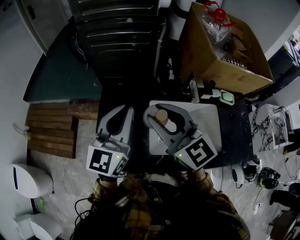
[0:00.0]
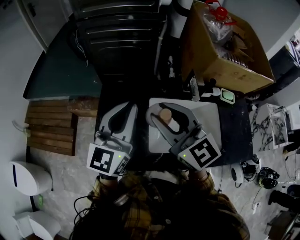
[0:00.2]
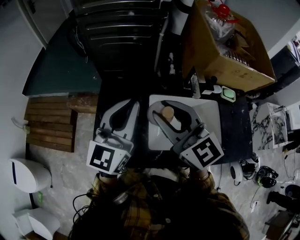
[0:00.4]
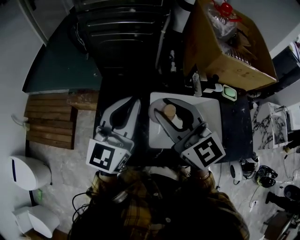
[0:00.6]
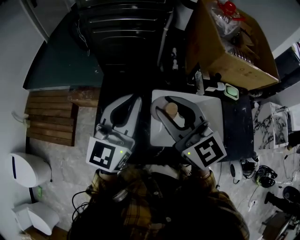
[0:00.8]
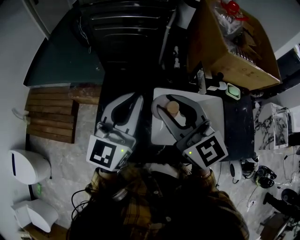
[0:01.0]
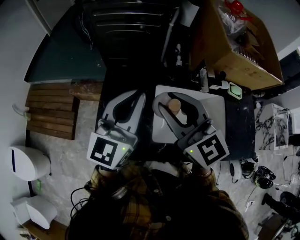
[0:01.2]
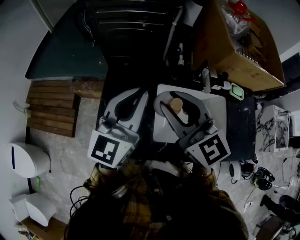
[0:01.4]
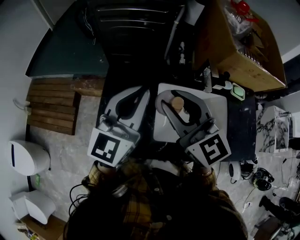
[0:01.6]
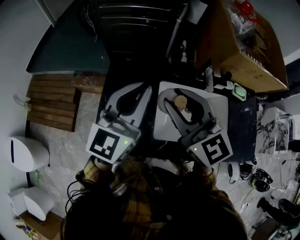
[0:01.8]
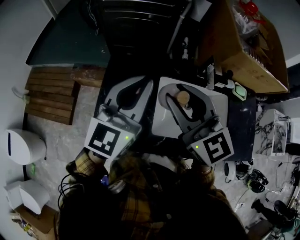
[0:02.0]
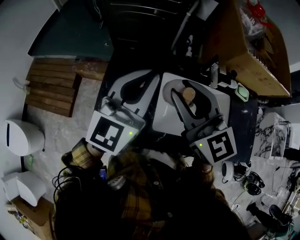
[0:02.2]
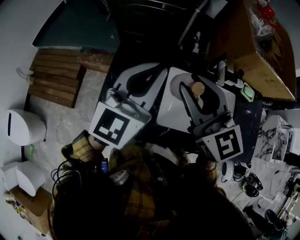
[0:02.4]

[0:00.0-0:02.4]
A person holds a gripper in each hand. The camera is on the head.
0:00.0 to 0:01.2: The grippers stay close to where they were, moving slightly.
0:01.2 to 0:02.4: The two grippers keep their place.

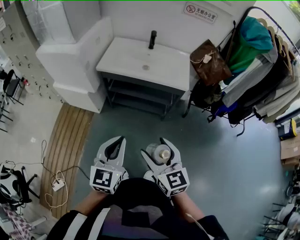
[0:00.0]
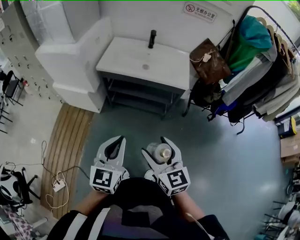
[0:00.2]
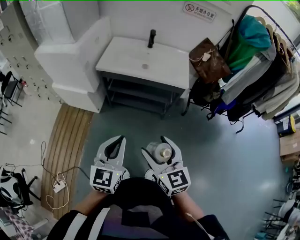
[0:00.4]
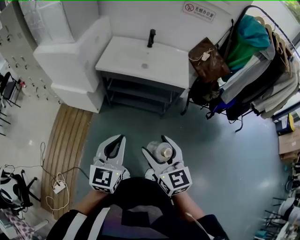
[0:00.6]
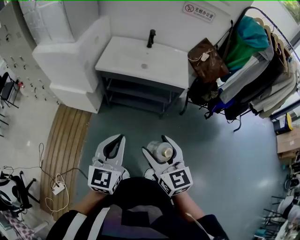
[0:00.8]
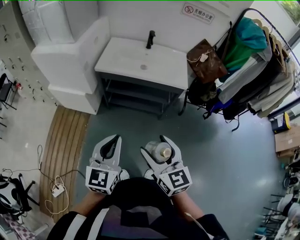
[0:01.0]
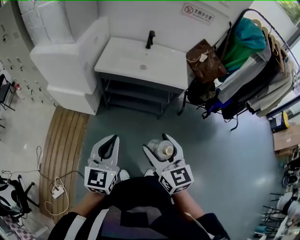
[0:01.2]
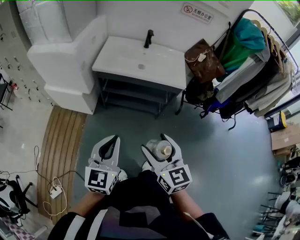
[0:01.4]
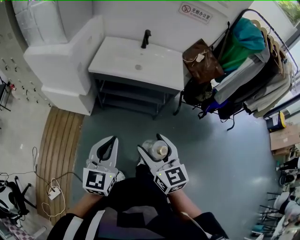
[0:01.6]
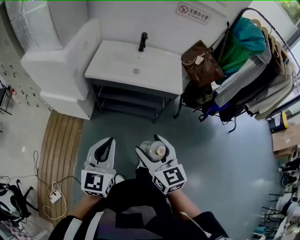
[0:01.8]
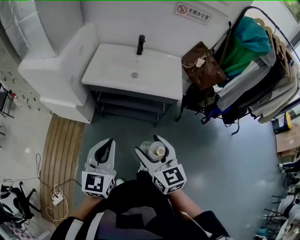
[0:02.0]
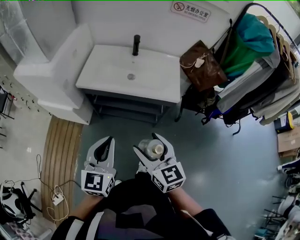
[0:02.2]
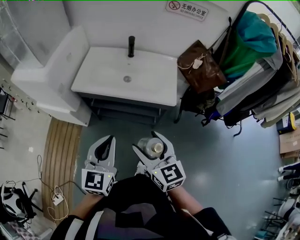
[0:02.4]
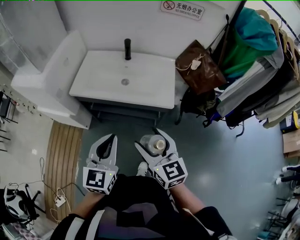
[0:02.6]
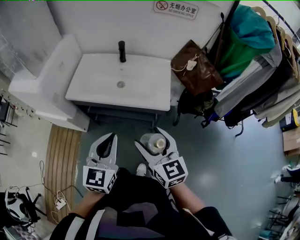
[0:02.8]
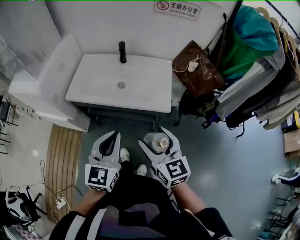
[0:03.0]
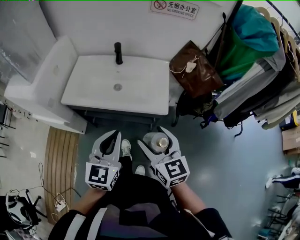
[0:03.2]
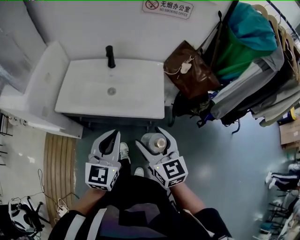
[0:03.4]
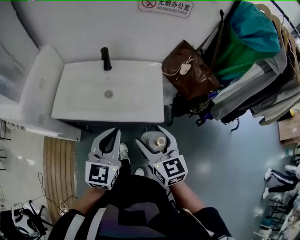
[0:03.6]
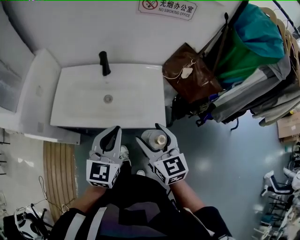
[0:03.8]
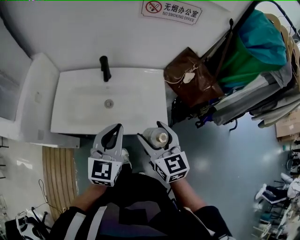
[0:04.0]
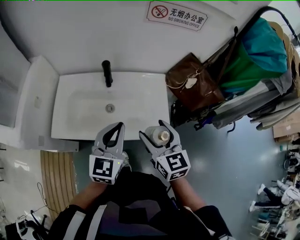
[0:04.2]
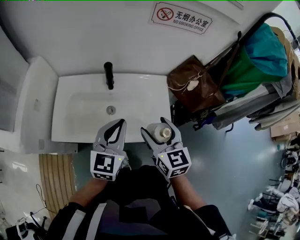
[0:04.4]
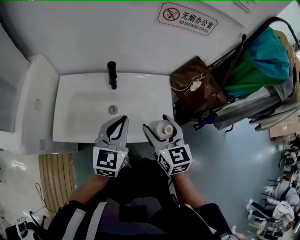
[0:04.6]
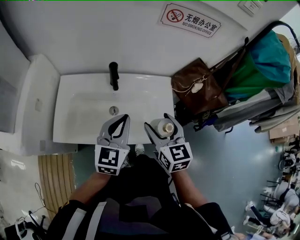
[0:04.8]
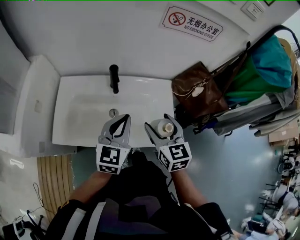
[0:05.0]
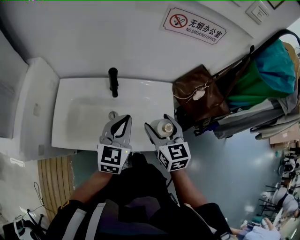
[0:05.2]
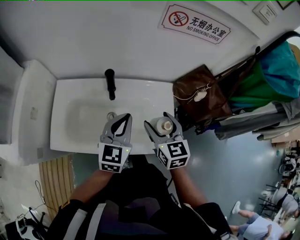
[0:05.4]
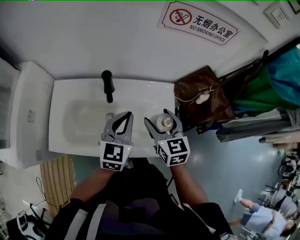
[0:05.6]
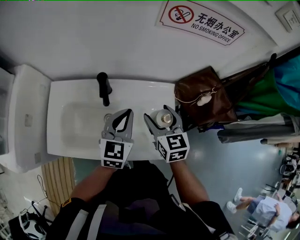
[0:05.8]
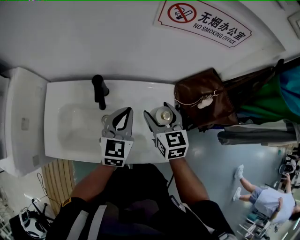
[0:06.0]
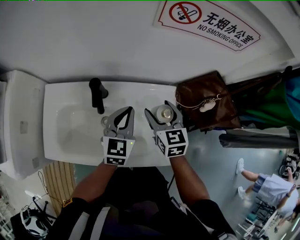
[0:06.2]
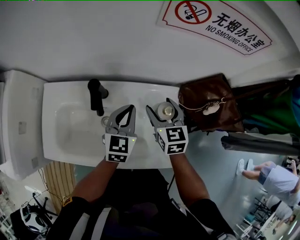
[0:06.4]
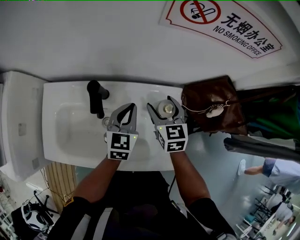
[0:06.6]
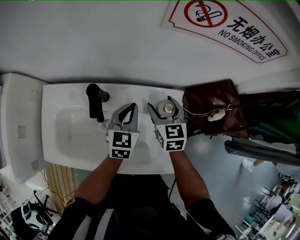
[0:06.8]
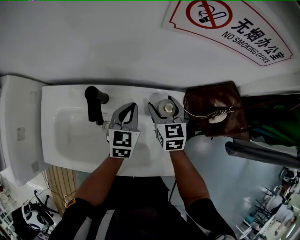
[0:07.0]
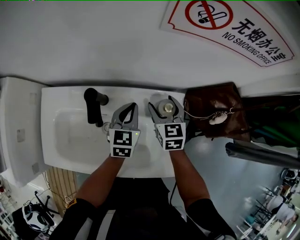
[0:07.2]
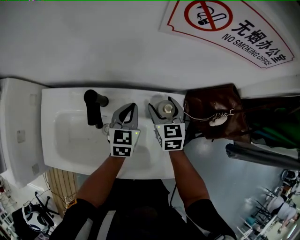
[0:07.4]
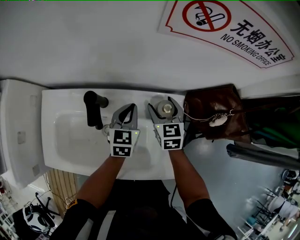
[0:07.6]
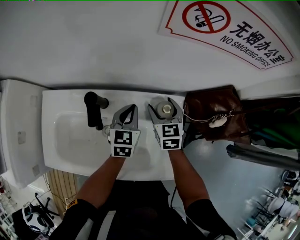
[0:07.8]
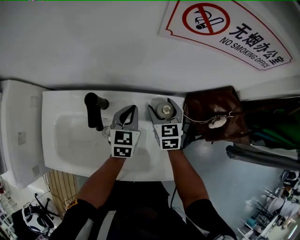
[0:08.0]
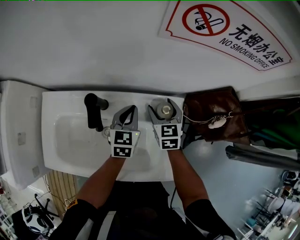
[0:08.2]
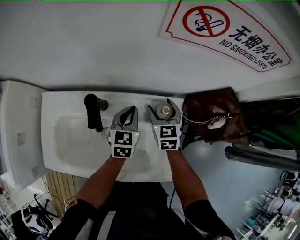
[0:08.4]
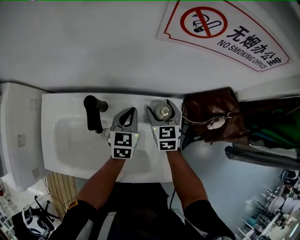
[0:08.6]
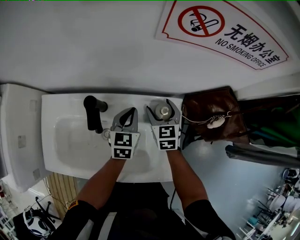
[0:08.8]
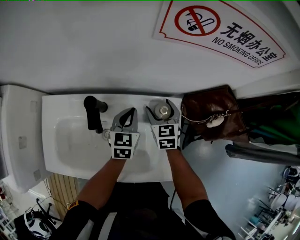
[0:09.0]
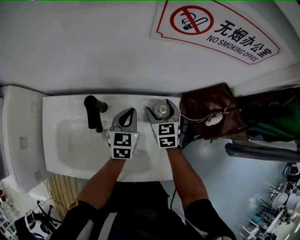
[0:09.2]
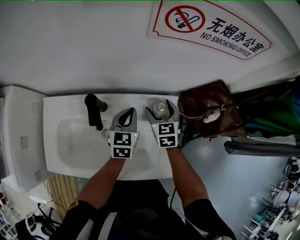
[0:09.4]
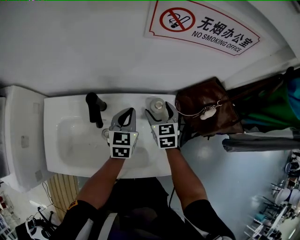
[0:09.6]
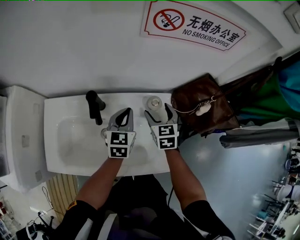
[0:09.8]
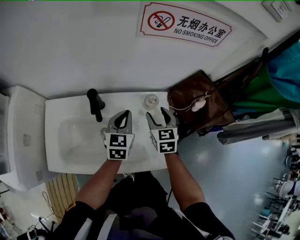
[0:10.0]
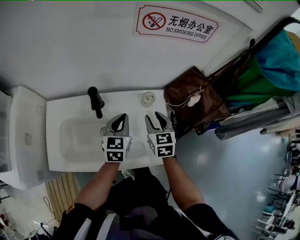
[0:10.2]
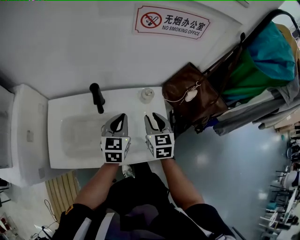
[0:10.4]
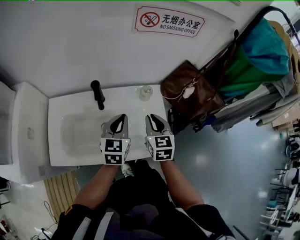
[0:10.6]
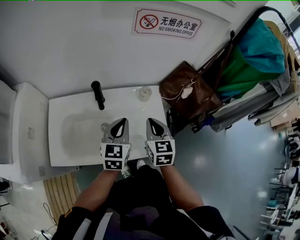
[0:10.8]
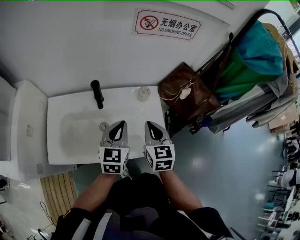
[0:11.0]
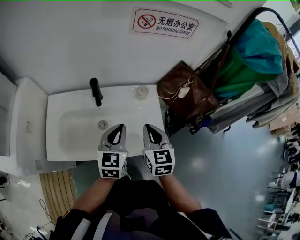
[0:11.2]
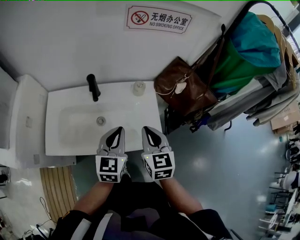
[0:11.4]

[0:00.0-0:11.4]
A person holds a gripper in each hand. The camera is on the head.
0:00.0 to 0:01.4: The left gripper is displaced to the left by some 5 cm.
0:01.4 to 0:02.8: The two grippers go roughly 30 cm forward and to the right.
0:02.8 to 0:04.2: The two grippers go approximately 25 cm forward.
0:04.2 to 0:05.6: Both grippers move forward, some 15 cm.
0:05.6 to 0:07.2: The right gripper shifts roughly 20 cm forward and downward, while the left gripper moves downward and forward, about 20 cm.
0:07.2 to 0:08.6: The grippers move only a little.
0:08.6 to 0:10.0: The left gripper heads upward and backward, covering some 10 cm, while the right gripper shifts roughly 10 cm backward and upward.
0:10.0 to 0:11.4: Both grippers travel together backward and upward, some 25 cm. The right gripper closes up.

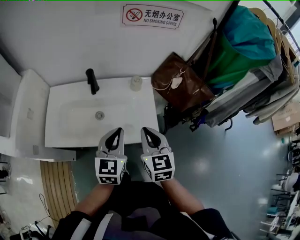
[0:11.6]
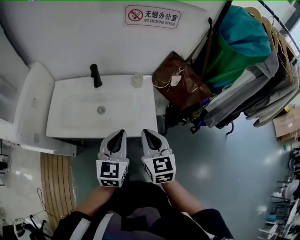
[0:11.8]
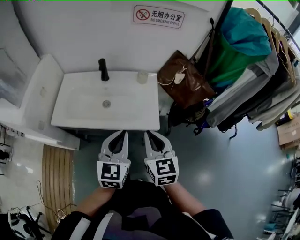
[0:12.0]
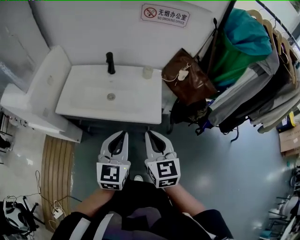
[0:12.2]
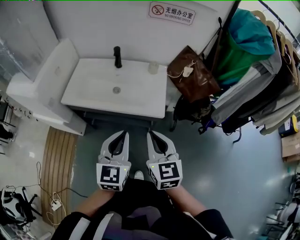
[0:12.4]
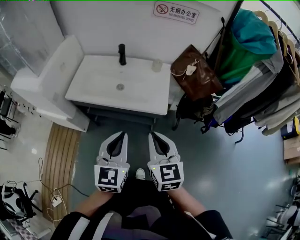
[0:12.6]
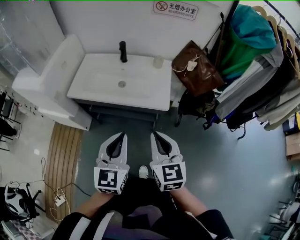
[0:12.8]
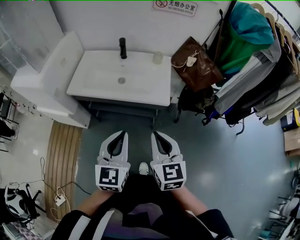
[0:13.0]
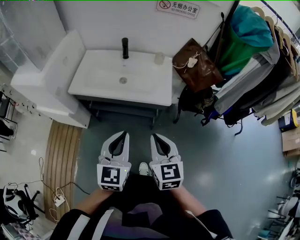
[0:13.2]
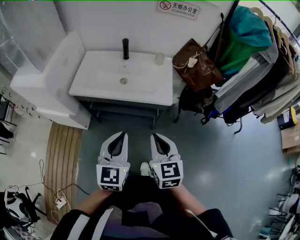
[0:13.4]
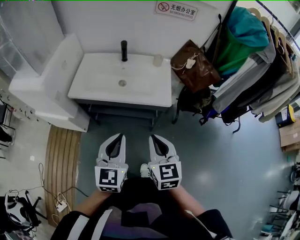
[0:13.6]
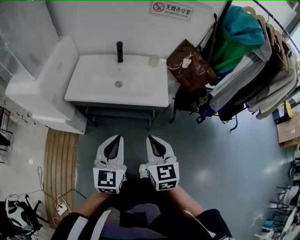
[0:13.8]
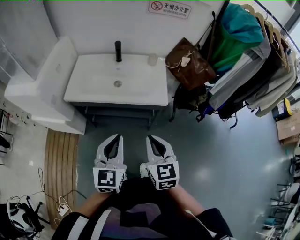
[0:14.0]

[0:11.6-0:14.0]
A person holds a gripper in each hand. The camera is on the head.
0:11.6 to 0:12.8: Both grippers move backward, roughly 25 cm.
0:12.8 to 0:14.0: Both grippers move to the left, some 5 cm.

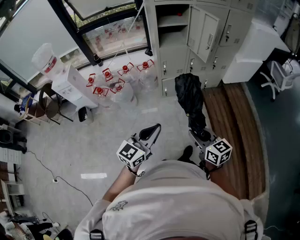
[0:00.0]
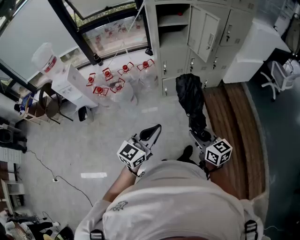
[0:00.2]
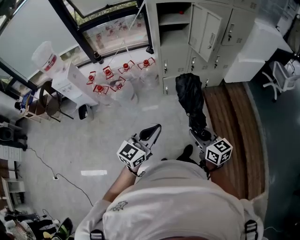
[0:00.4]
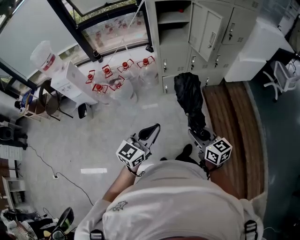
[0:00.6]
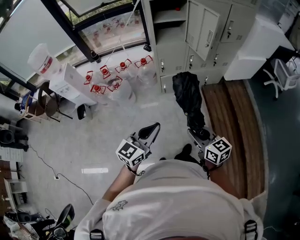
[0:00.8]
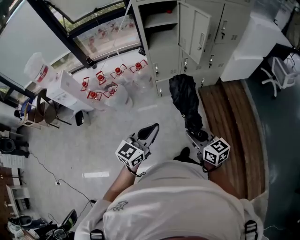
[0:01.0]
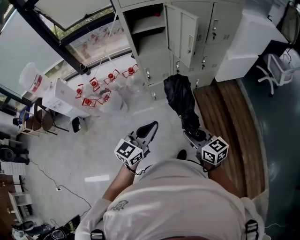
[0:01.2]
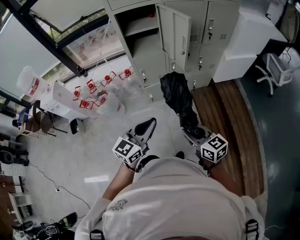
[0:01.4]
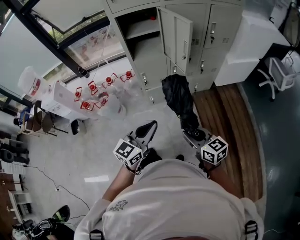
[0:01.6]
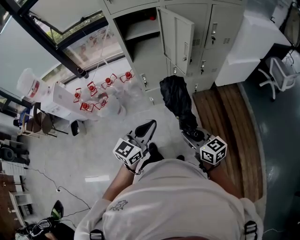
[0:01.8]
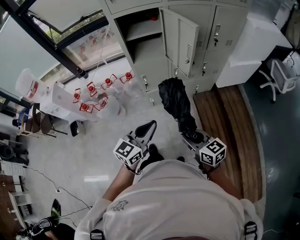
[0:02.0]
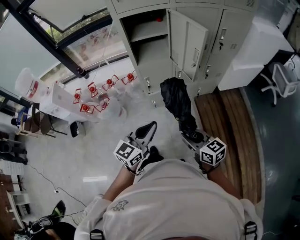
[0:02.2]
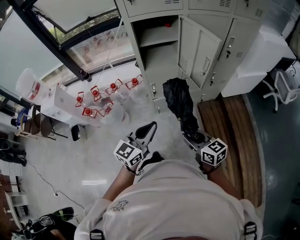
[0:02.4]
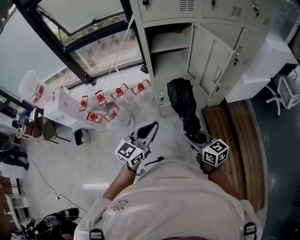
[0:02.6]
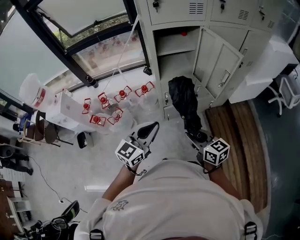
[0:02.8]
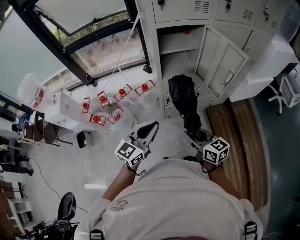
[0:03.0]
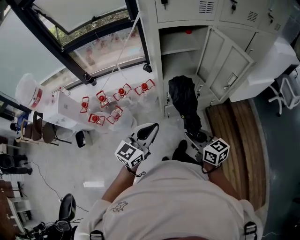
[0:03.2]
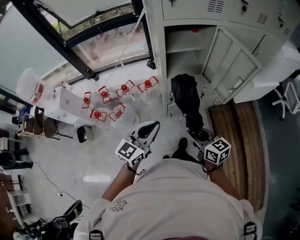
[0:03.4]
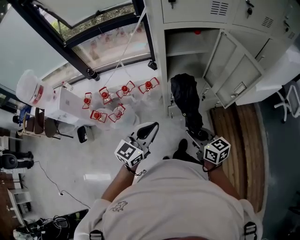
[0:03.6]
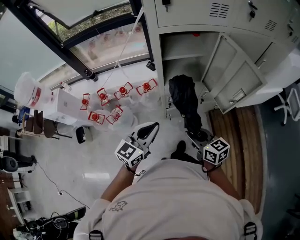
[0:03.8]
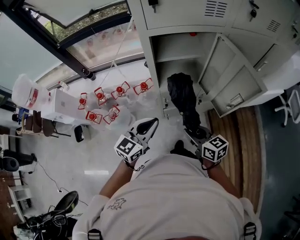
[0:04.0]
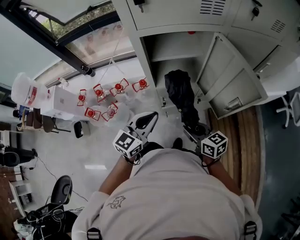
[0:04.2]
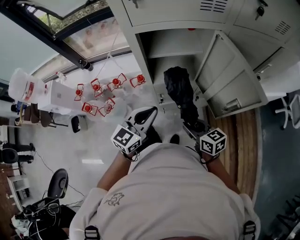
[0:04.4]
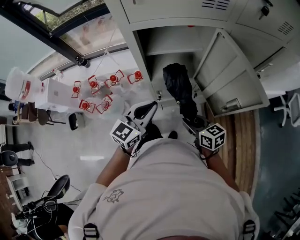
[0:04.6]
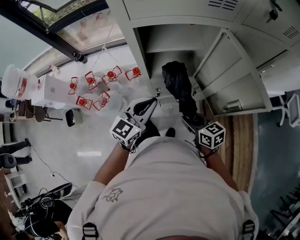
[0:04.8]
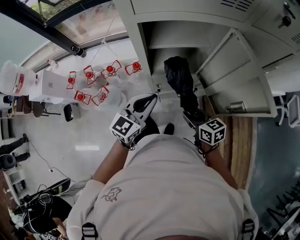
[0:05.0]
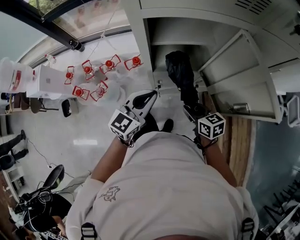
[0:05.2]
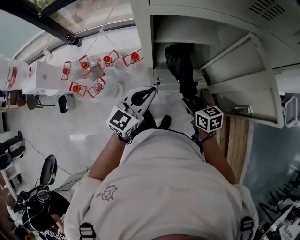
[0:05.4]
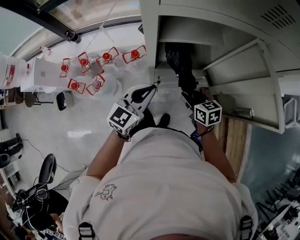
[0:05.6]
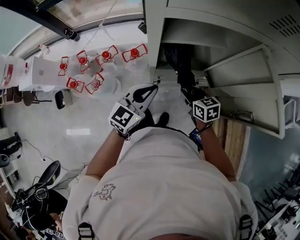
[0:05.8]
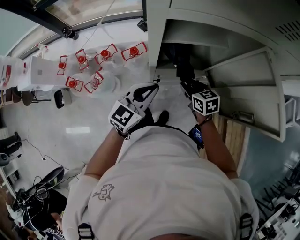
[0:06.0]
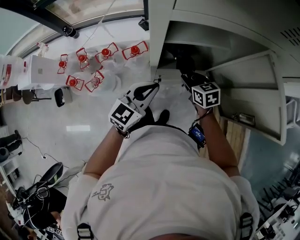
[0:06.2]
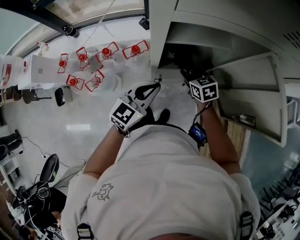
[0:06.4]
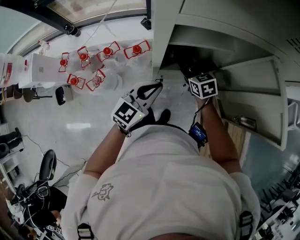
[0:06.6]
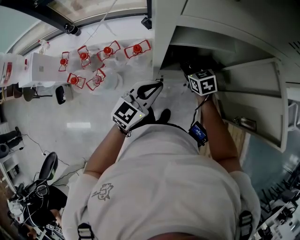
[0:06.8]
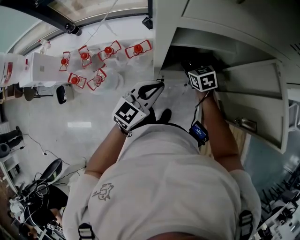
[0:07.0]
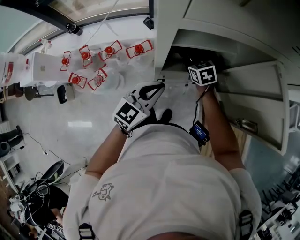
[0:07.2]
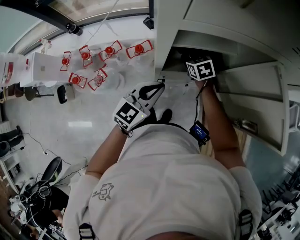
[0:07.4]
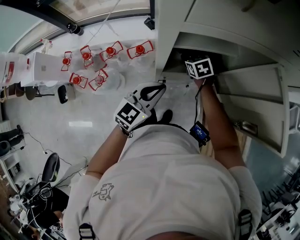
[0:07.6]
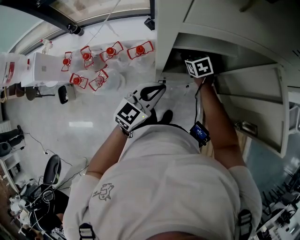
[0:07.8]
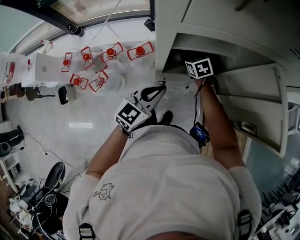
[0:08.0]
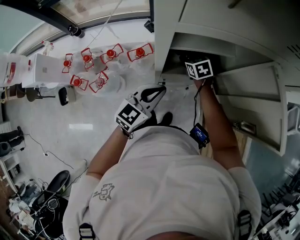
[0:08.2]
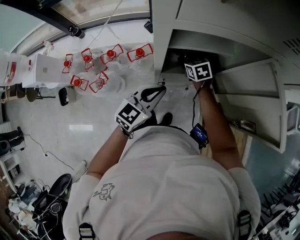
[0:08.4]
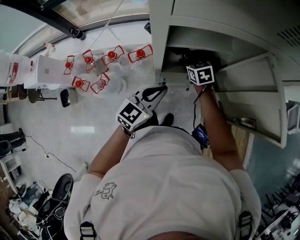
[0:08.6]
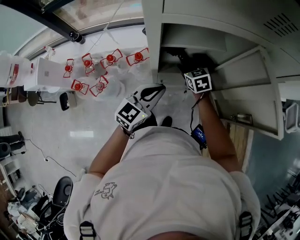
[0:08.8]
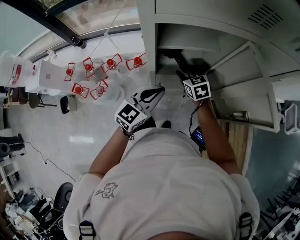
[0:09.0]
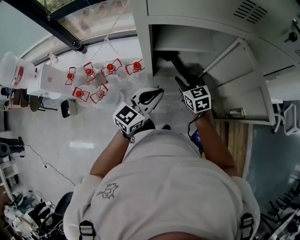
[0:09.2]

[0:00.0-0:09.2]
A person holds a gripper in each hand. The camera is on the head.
0:00.0 to 0:01.6: The two grippers go some 25 cm forward and to the right.
0:01.6 to 0:03.0: The two grippers go about 30 cm to the left and forward.
0:03.0 to 0:04.6: The left gripper shifts roughly 25 cm forward and to the right. Meanwhile the right gripper moves forward, to the right and downward, about 25 cm.
0:04.6 to 0:06.2: The left gripper goes about 10 cm forward and downward; the right gripper is displaced forward by some 20 cm, and rotates about 20 degrees.
0:06.2 to 0:07.6: The right gripper goes roughly 10 cm forward.
0:07.6 to 0:09.2: The left gripper shifts by approximately 5 cm, while the right gripper shifts approximately 15 cm backward and upward, and swivels approximately 20 degrees.
